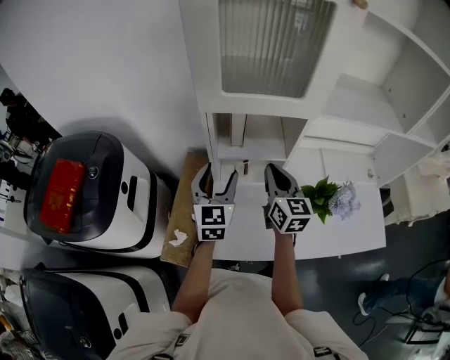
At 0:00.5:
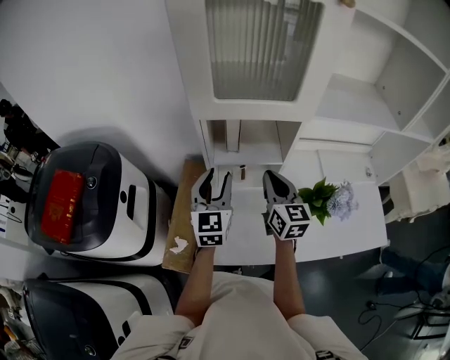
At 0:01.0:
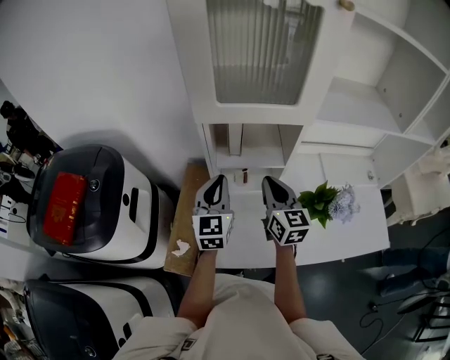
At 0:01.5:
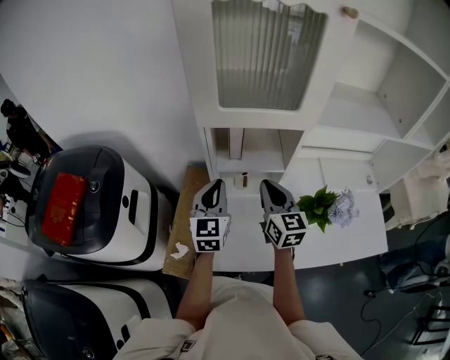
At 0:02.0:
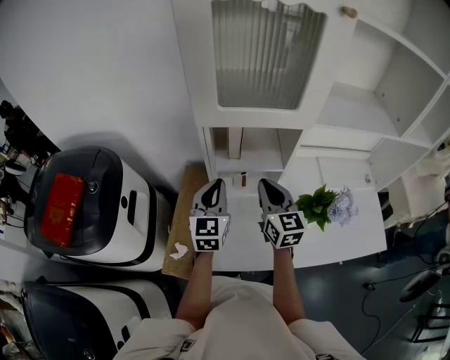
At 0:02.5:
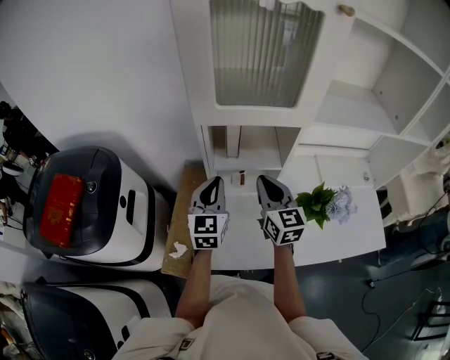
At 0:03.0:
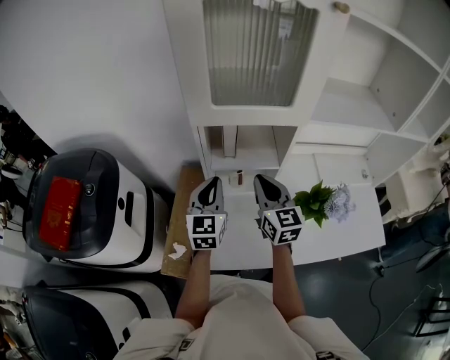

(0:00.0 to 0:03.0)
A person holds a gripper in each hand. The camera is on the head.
0:00.0 - 0:01.5: The left gripper closes its fingers.
0:01.5 - 0:03.0: The grippers make only small movements.

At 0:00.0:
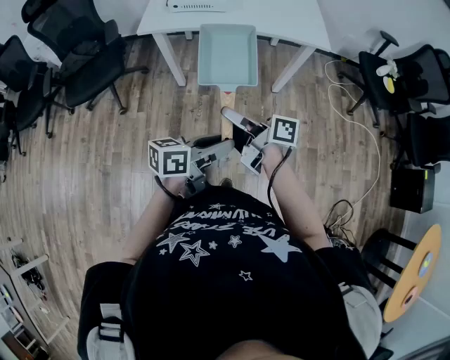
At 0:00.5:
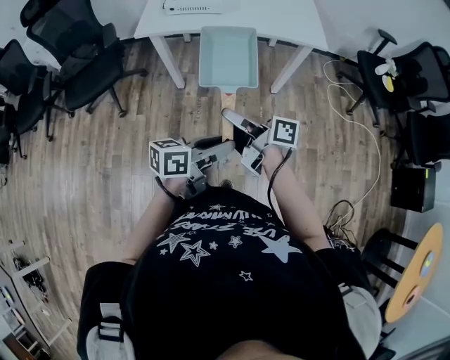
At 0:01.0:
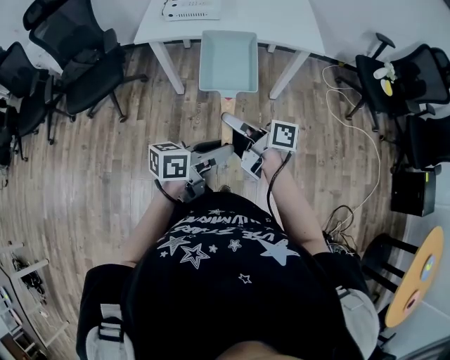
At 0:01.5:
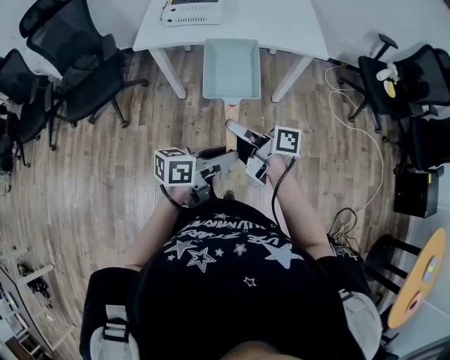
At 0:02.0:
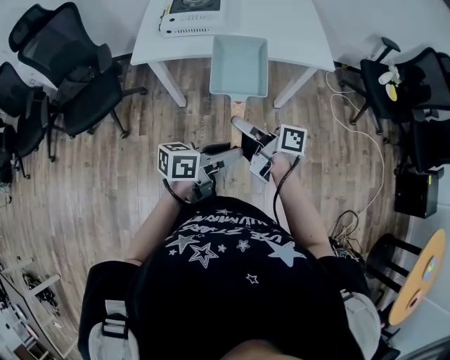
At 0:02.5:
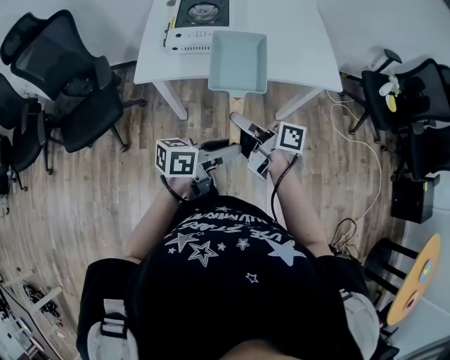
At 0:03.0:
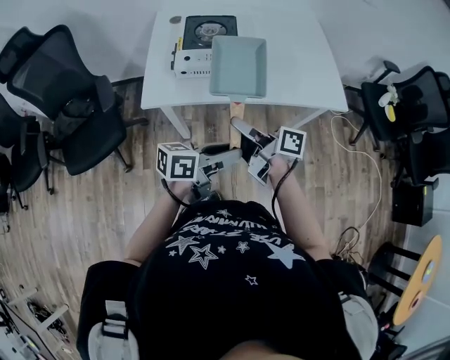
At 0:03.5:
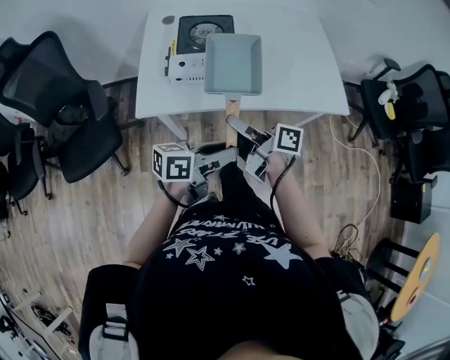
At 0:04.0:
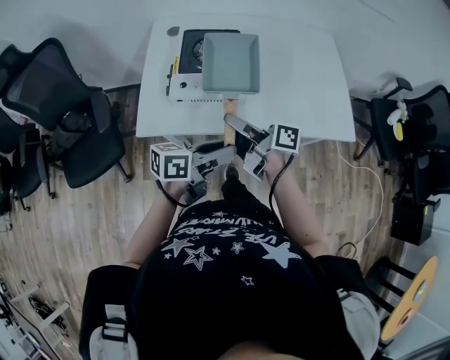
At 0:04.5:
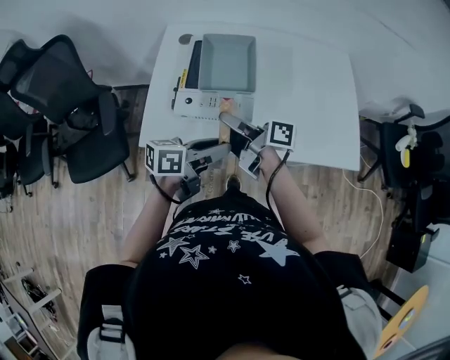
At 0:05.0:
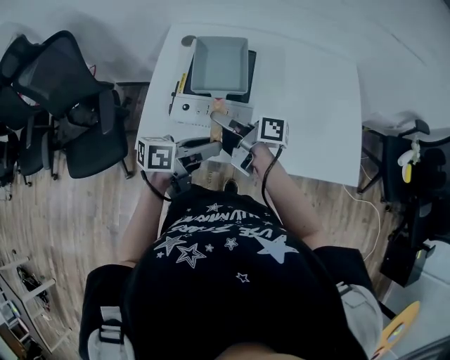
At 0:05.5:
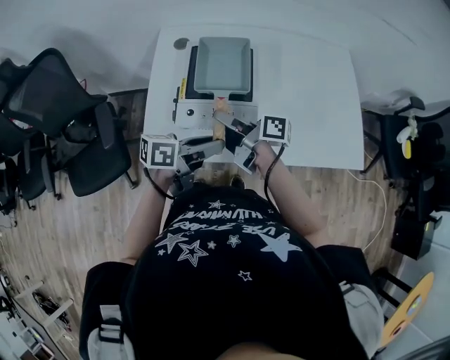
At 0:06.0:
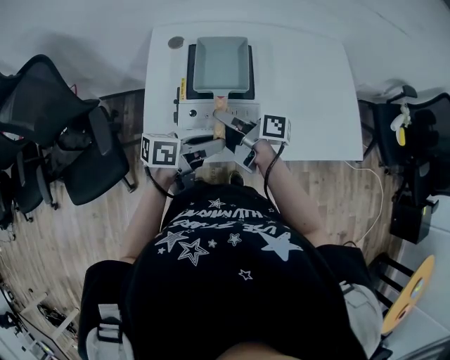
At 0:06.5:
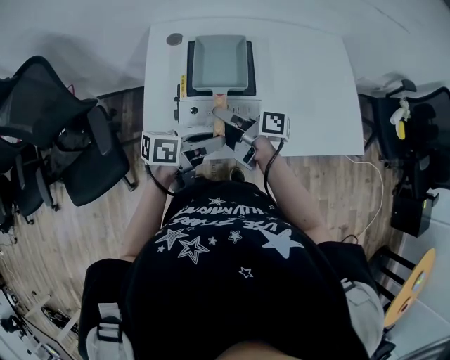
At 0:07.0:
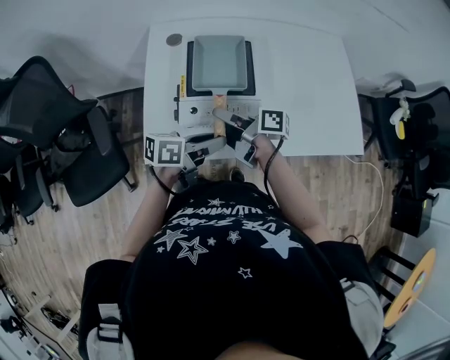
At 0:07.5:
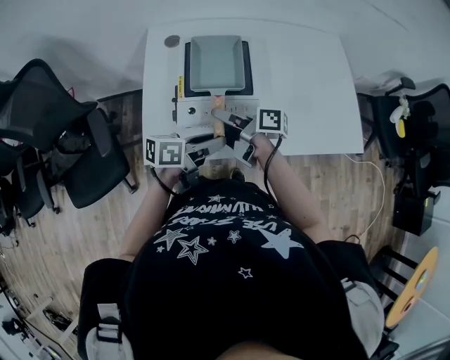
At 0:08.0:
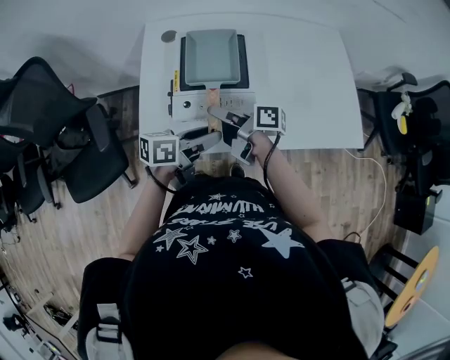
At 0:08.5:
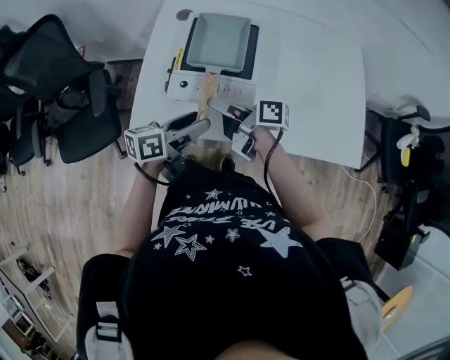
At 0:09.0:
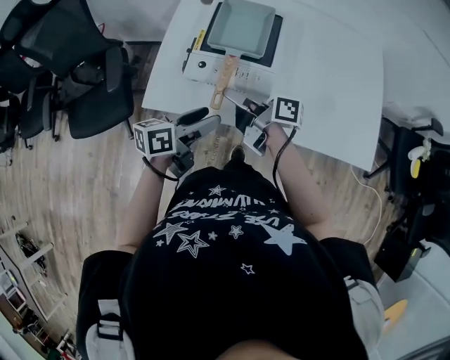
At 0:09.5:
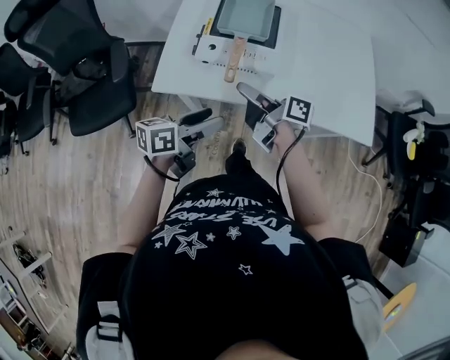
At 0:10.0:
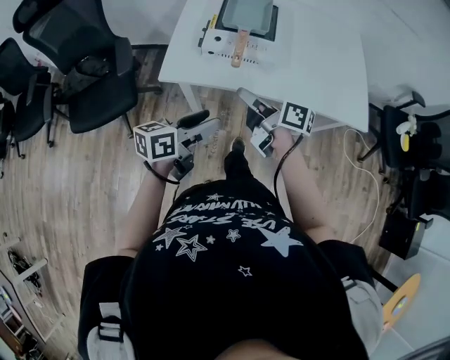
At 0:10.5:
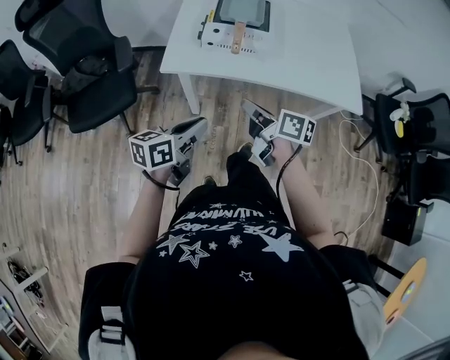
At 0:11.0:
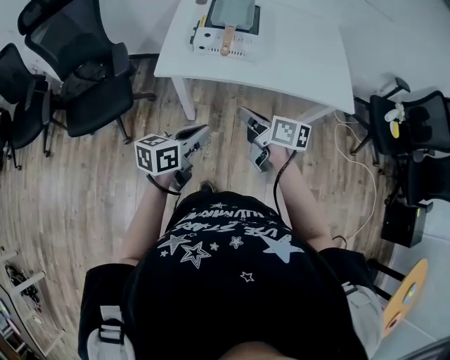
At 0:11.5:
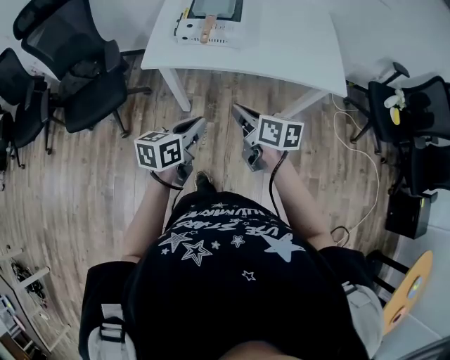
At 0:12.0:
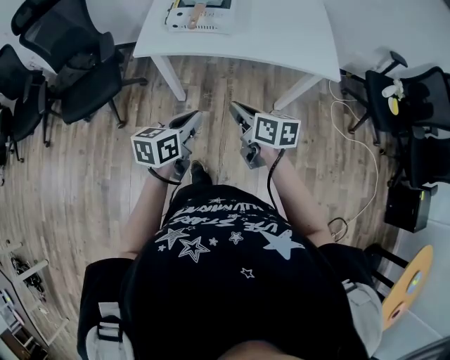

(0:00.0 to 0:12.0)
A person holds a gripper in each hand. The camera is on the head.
0:00.0 - 0:02.0: The grippers both shift forward by roughly 10 cm.
0:02.0 - 0:04.0: The grippers both shift forward and to the left by some 35 cm.
0:04.0 - 0:06.0: The grippers both shift forward and to the left by about 15 cm.
0:06.0 - 0:08.0: The grippers stay close to where they were, moving slightly.
0:08.0 - 0:10.0: The grippers both shift backward by roughly 20 cm. The left gripper rotates approximately 20 degrees.
0:10.0 - 0:12.0: The two grippers go some 20 cm backward and to the right. The right gripper swivels some 20 degrees, and closes its fingers; the left gripper closes.

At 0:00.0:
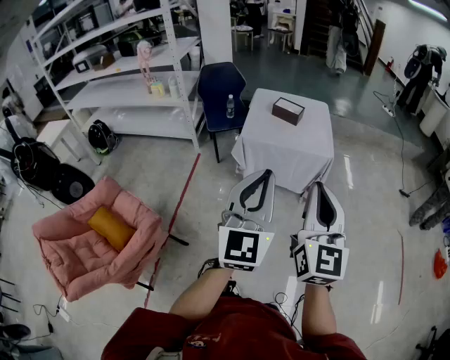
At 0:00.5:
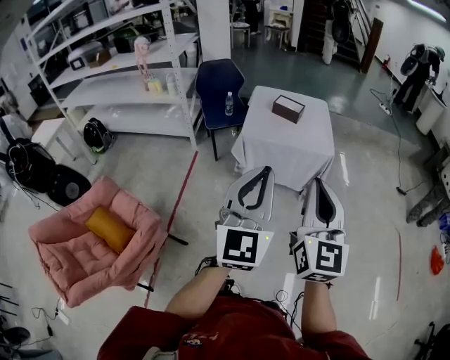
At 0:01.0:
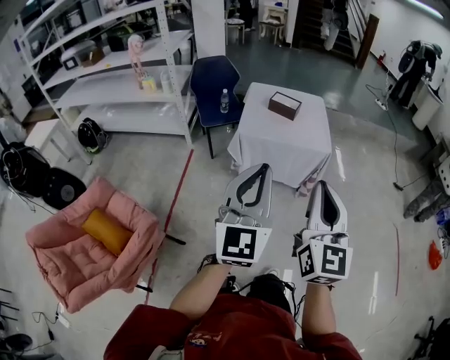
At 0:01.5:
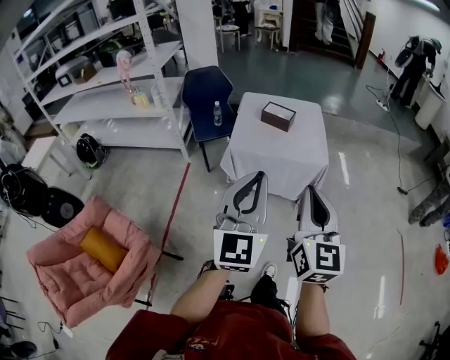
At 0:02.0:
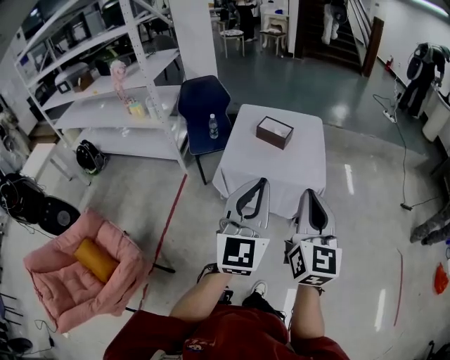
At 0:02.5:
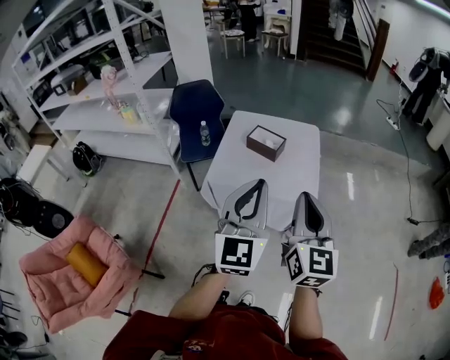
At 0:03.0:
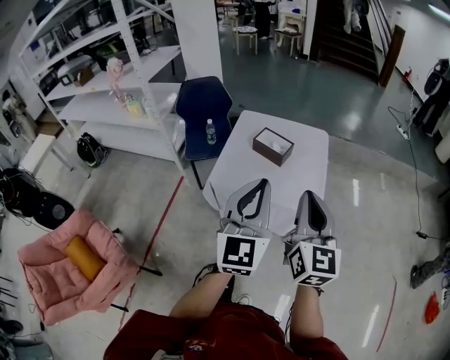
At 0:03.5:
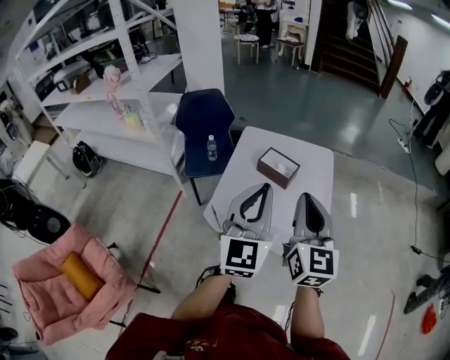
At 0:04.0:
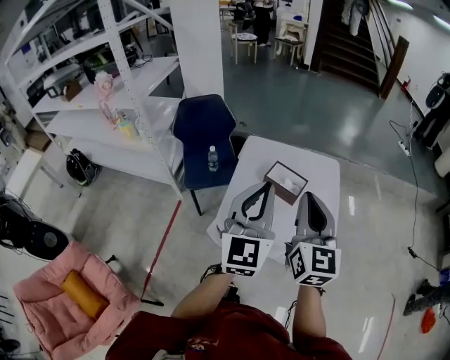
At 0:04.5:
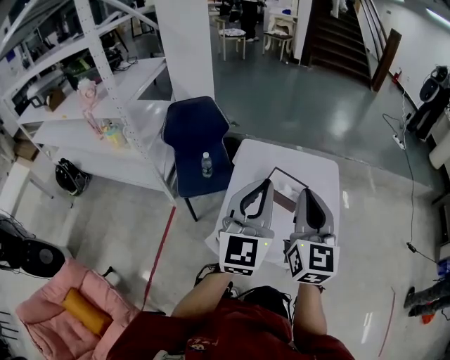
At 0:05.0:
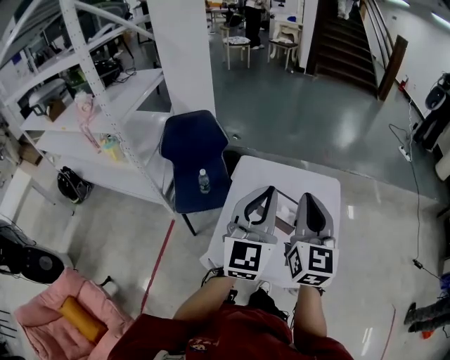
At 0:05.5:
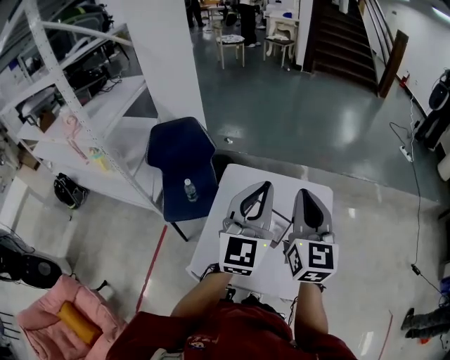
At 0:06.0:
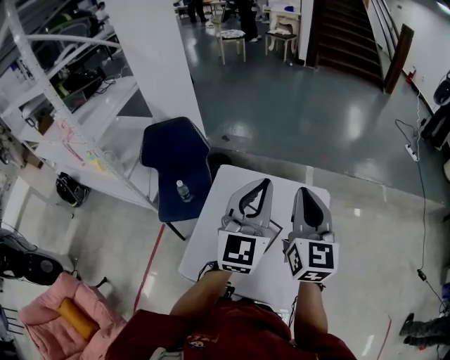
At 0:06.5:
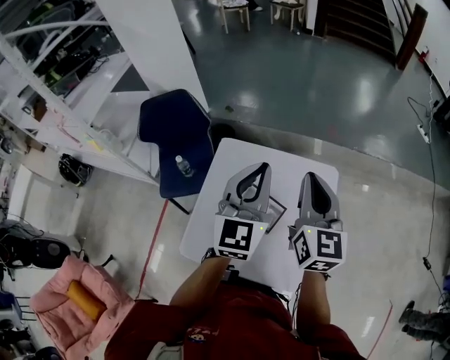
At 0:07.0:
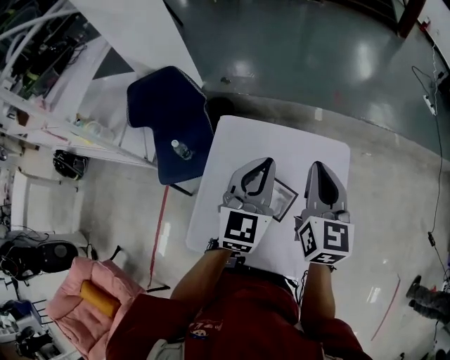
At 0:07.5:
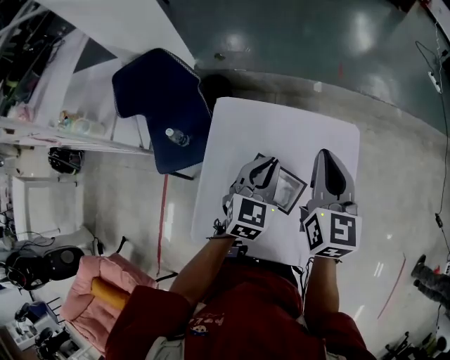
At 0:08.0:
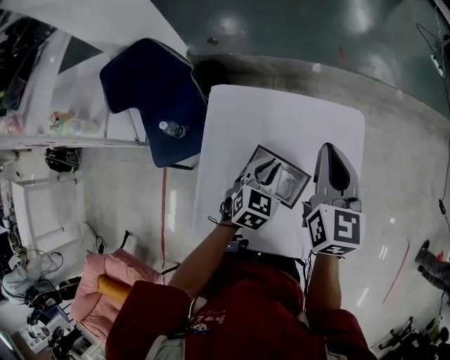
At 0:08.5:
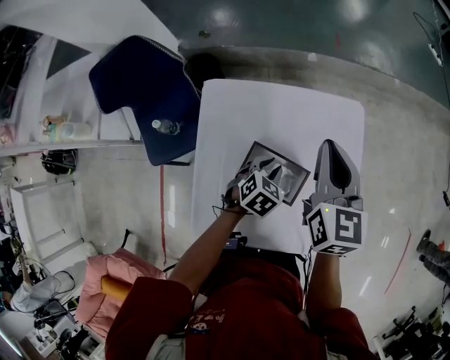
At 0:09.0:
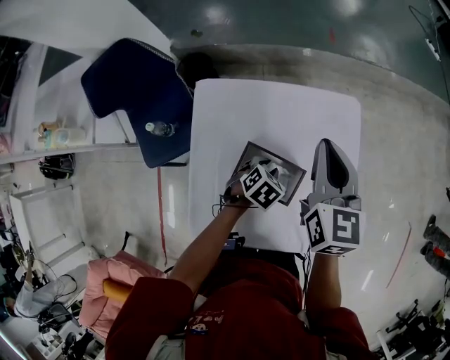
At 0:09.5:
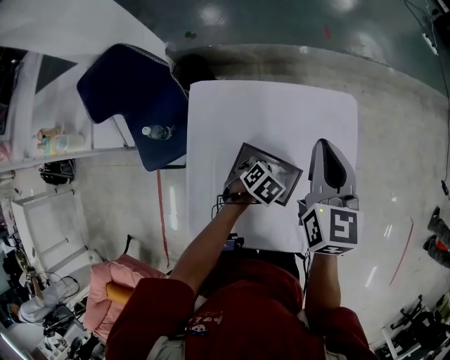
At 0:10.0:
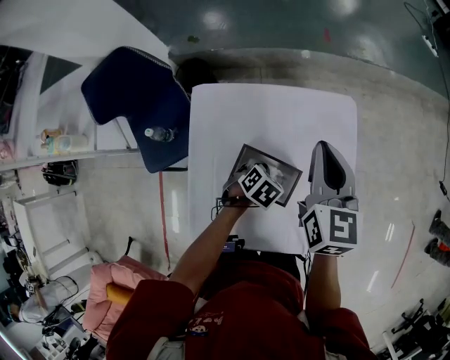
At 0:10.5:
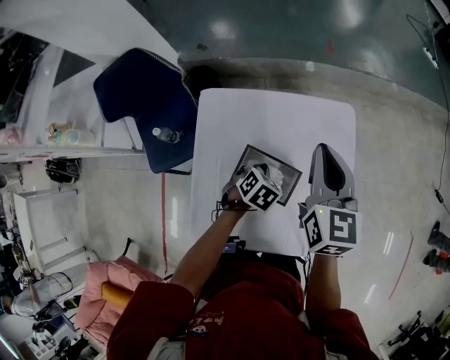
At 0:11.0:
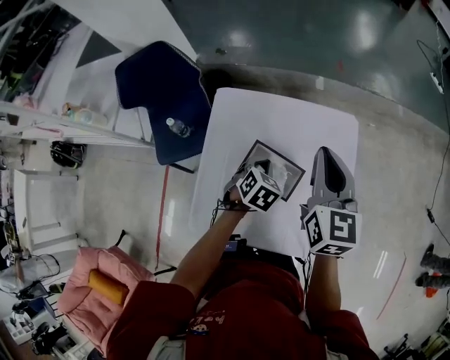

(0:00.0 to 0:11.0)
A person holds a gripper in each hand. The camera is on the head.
0:00.0 - 0:02.0: Both grippers travel together forward, approximately 30 cm.
0:02.0 - 0:03.5: Both grippers move forward, some 30 cm.
0:03.5 - 0:05.5: Both grippers are carried forward, roughly 40 cm.
0:05.5 - 0:07.5: The left gripper is displaced downward and forward by about 35 cm, and tips its fingers downward by approximately 30 degrees. The right gripper moves forward and downward, some 25 cm.
0:07.5 - 0:09.0: The right gripper goes some 5 cm downward. Meanwhile the left gripper shifts approximately 20 cm downward, points its fingers about 40 degrees further downward, and opens.
0:09.0 - 0:11.0: The left gripper travels upward by approximately 10 cm, rotates about 20 degrees, and closes its fingers. The right gripper moves backward and upward, some 10 cm.

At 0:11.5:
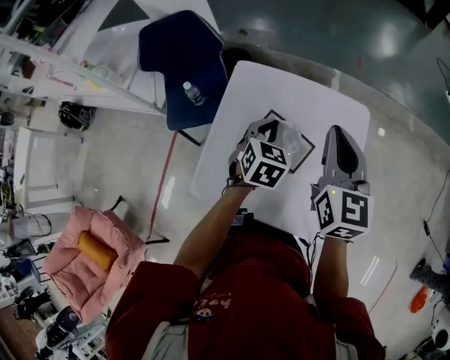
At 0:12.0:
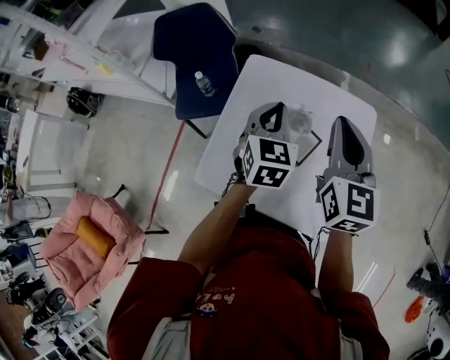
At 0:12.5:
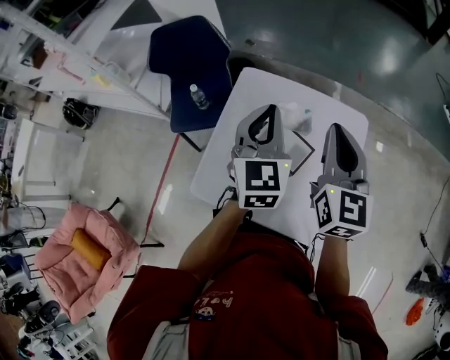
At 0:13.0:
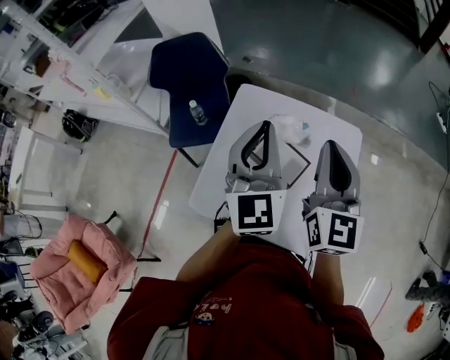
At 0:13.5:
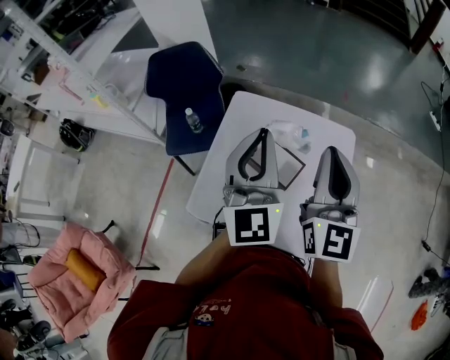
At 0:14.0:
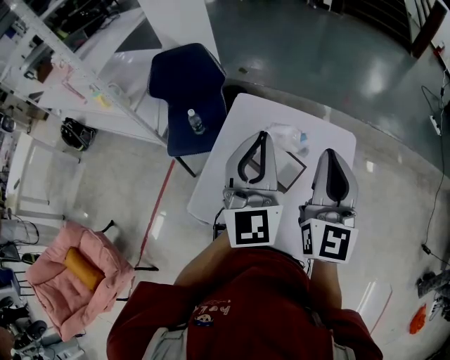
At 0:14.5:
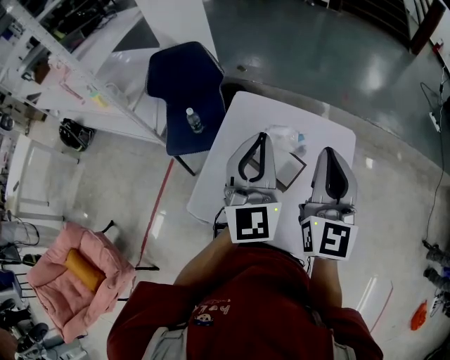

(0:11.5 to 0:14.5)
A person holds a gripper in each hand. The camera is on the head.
0:11.5 - 0:13.0: The left gripper goes roughly 20 cm upward, and angles its fingers upward, by about 40 degrees. Meanwhile the right gripper shifts some 5 cm upward and backward.
0:13.0 - 0:14.5: There are only small adjustments of the grippers.
